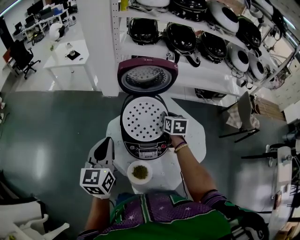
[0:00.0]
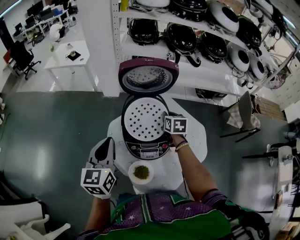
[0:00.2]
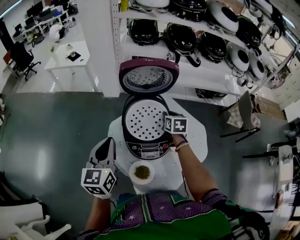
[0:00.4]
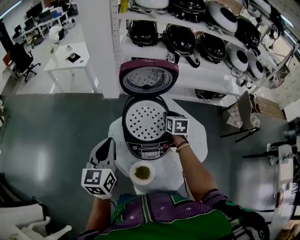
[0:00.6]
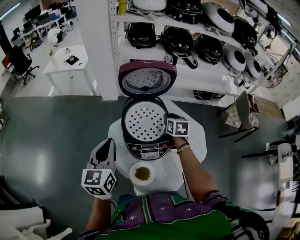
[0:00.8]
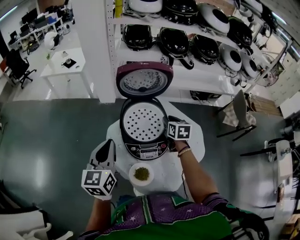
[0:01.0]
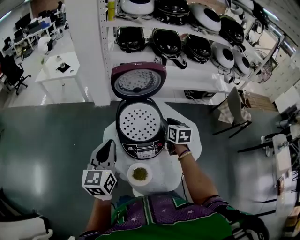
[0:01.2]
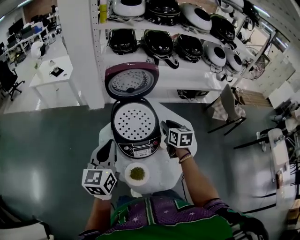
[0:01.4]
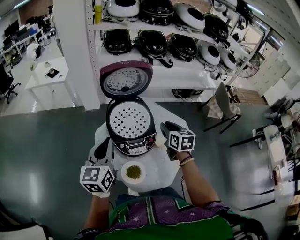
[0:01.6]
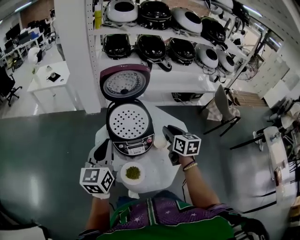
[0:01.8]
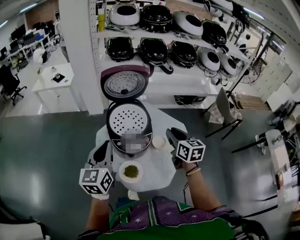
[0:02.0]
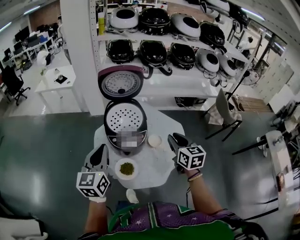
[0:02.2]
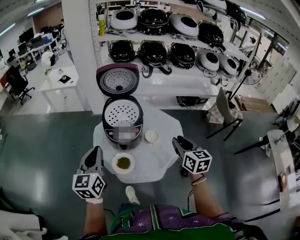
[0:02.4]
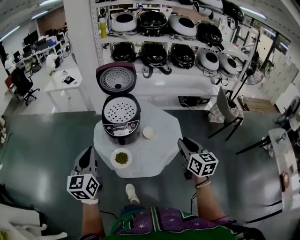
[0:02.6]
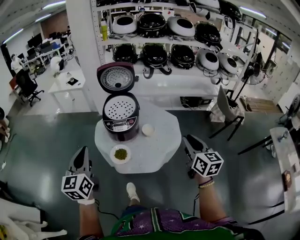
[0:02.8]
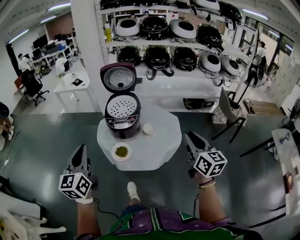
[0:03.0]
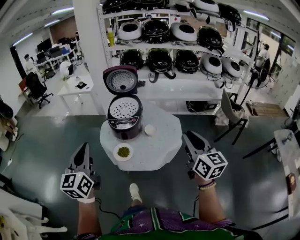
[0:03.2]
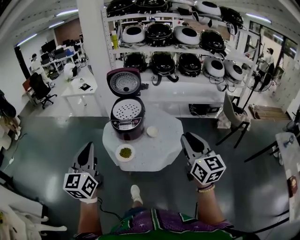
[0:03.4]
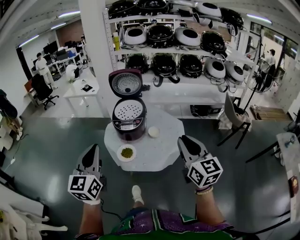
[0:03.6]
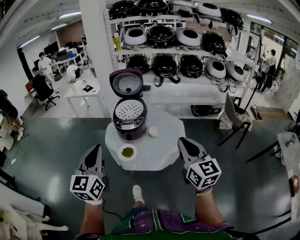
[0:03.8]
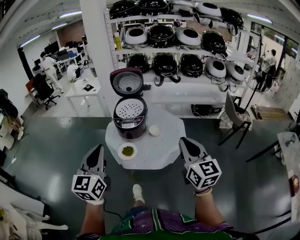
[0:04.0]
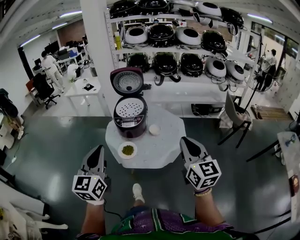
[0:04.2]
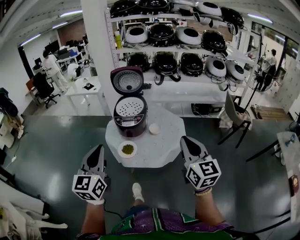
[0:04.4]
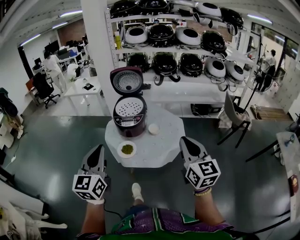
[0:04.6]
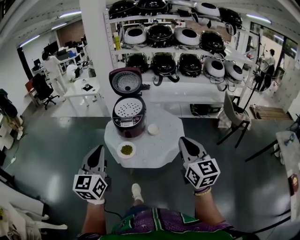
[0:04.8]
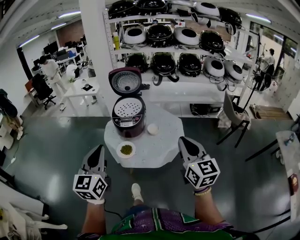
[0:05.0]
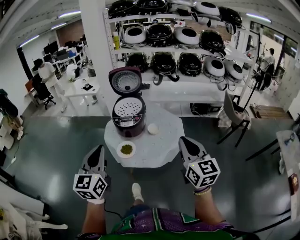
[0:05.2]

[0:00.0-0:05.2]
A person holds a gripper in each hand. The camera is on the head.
0:00.0 to 0:01.8: The right gripper travels backward, upward and to the right by roughly 20 cm. The left gripper shifts by approximately 5 cm.
0:01.8 to 0:03.4: The right gripper goes roughly 40 cm backward, upward and to the right, and changes its angle by roughly 30 degrees. The left gripper travels backward by approximately 35 cm, and swivels some 20 degrees.
0:03.4 to 0:05.2: The left gripper moves some 5 cm.

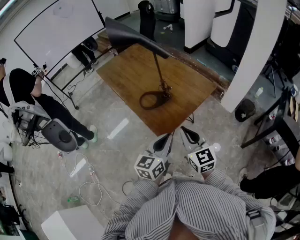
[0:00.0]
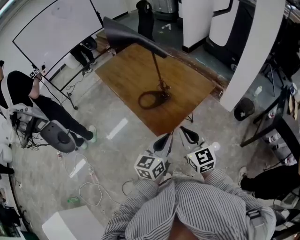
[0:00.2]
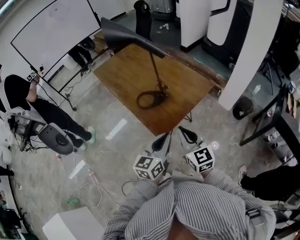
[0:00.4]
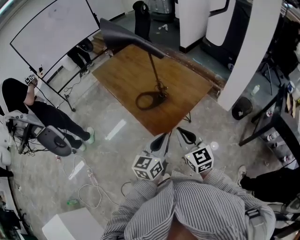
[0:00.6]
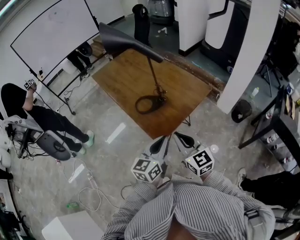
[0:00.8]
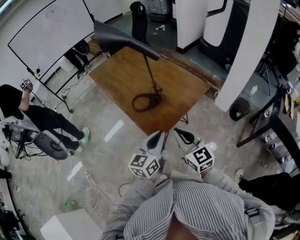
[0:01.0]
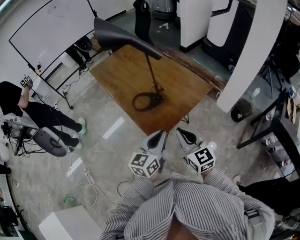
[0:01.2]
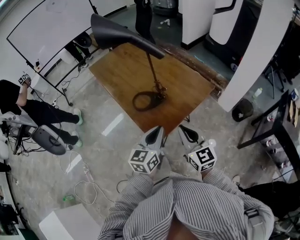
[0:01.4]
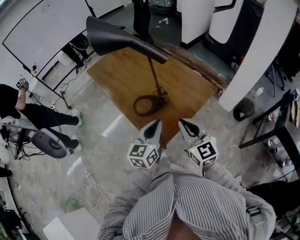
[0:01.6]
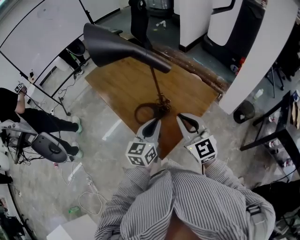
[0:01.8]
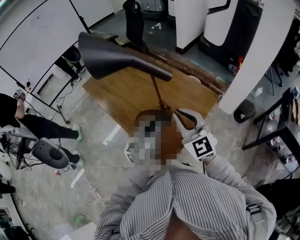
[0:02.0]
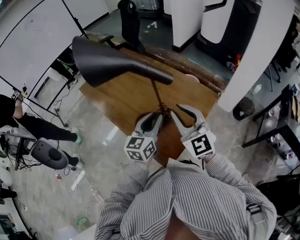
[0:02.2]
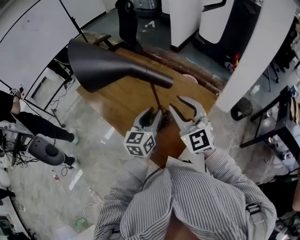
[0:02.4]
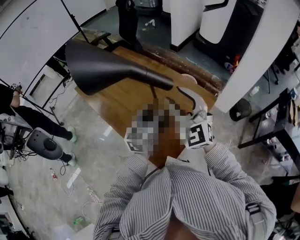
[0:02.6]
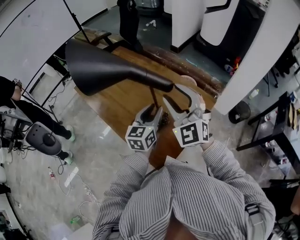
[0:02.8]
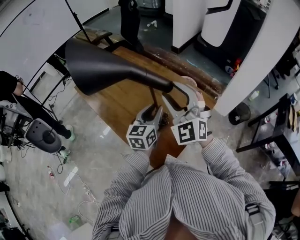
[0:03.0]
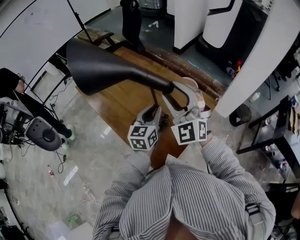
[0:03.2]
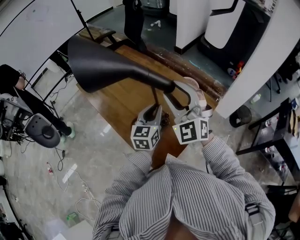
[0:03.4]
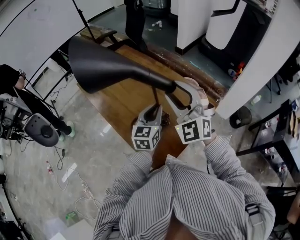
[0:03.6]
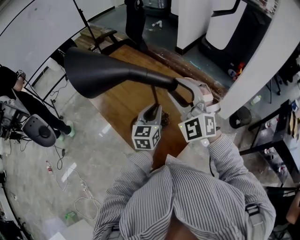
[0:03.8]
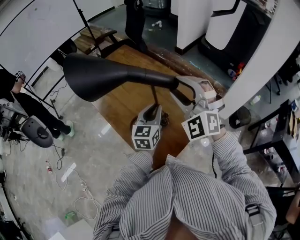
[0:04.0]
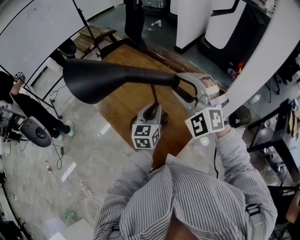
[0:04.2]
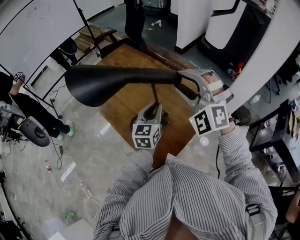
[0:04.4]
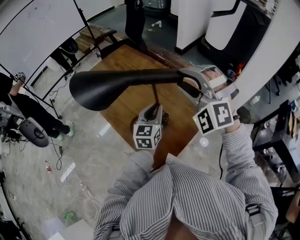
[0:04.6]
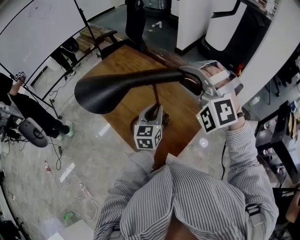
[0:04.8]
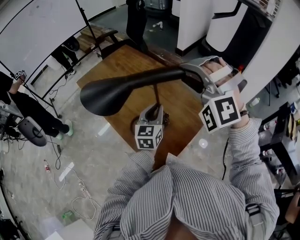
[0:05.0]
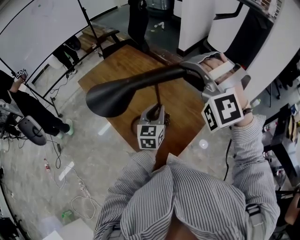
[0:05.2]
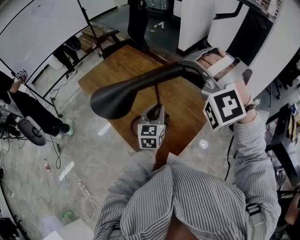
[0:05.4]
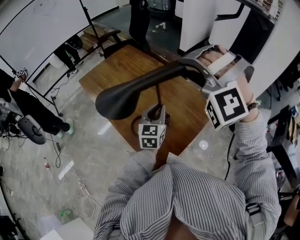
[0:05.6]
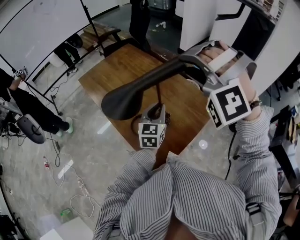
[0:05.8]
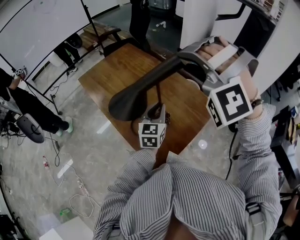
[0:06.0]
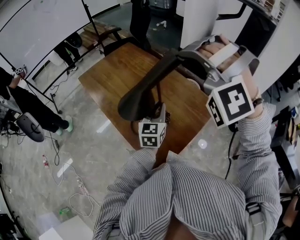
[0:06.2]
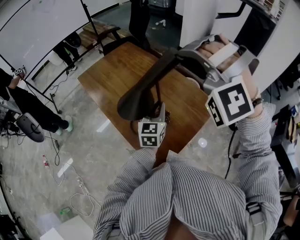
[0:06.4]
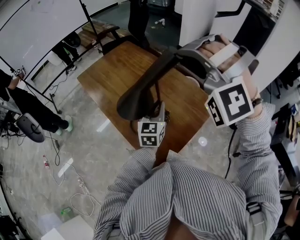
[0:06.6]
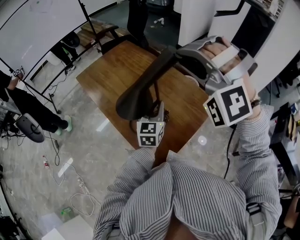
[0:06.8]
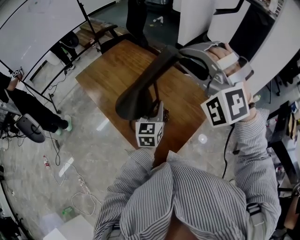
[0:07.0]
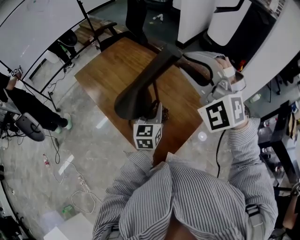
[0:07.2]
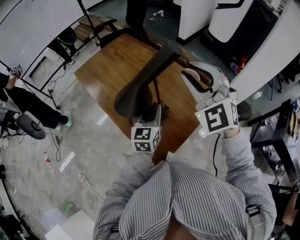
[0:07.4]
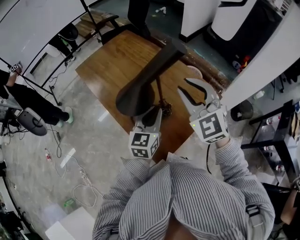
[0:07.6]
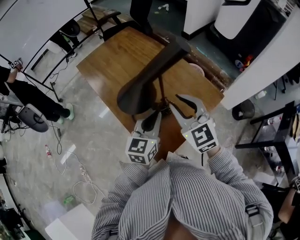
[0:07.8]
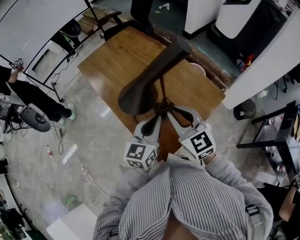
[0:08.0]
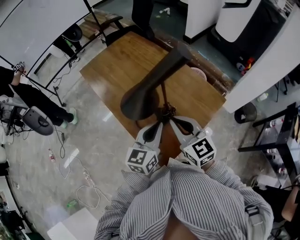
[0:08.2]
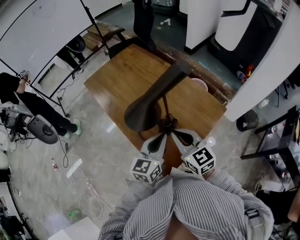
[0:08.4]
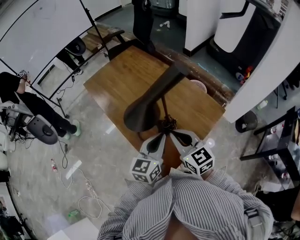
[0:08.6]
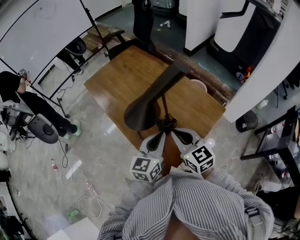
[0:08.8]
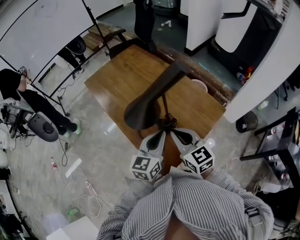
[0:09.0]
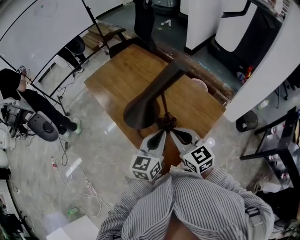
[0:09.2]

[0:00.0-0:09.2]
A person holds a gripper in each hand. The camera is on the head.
0:00.0 to 0:01.6: Both grippers travel together forward, about 10 cm.
0:01.6 to 0:03.0: The right gripper travels forward and upward by roughly 20 cm, twists roughly 40 degrees counterclockwise, seen from behind, and opens up, while the left gripper travels forward by approximately 20 cm, and opens up.
0:03.0 to 0:04.6: The right gripper moves roughly 5 cm, and turns by some 40 degrees.
0:04.6 to 0:06.2: The right gripper is displaced upward by about 5 cm, and changes its angle by roughly 30 degrees.
0:06.2 to 0:07.6: The left gripper shifts by about 5 cm. Meanwhile the right gripper shifts some 15 cm downward, and rolls clockwise, seen from behind, by about 70 degrees.
0:07.6 to 0:09.2: The right gripper travels downward, backward and to the left by some 15 cm, changes its angle by roughly 40 degrees, and closes its fingers.

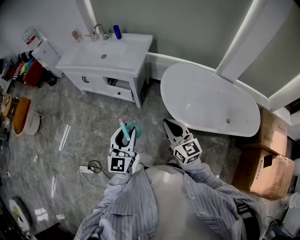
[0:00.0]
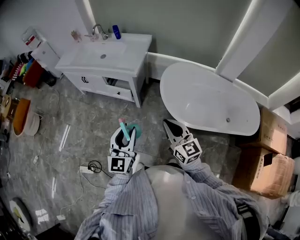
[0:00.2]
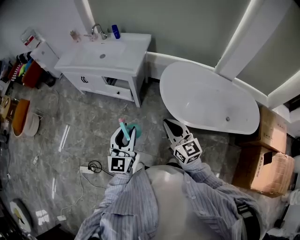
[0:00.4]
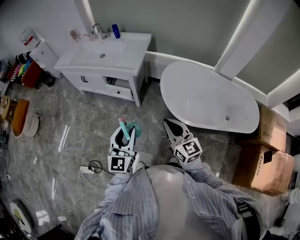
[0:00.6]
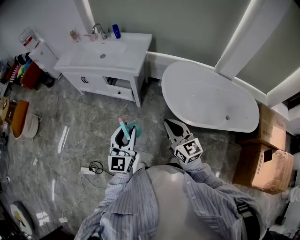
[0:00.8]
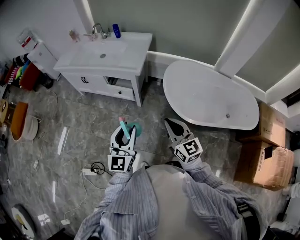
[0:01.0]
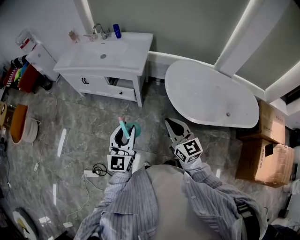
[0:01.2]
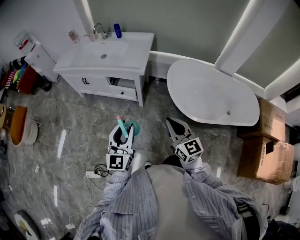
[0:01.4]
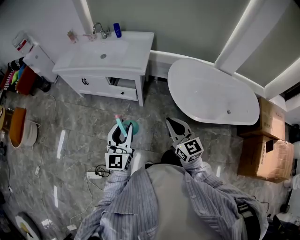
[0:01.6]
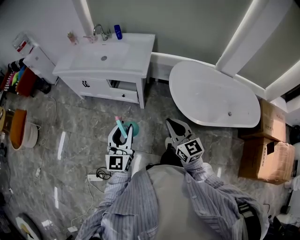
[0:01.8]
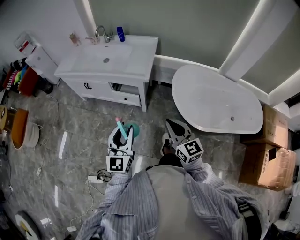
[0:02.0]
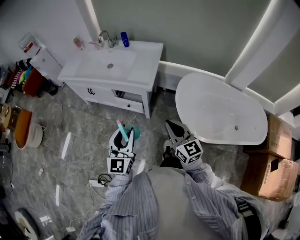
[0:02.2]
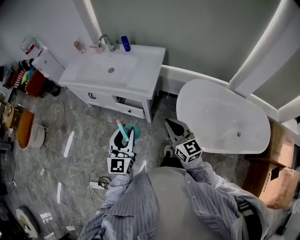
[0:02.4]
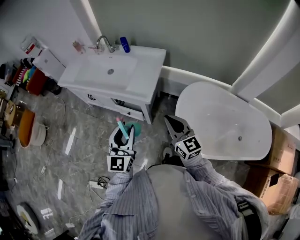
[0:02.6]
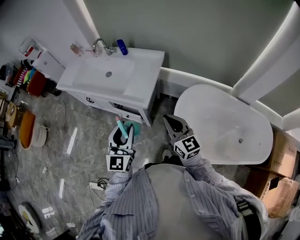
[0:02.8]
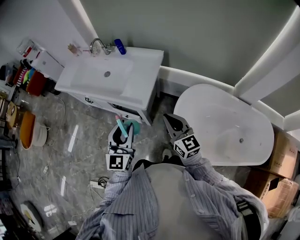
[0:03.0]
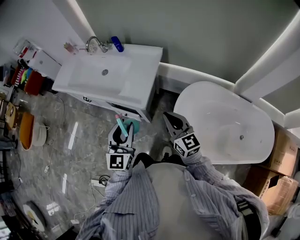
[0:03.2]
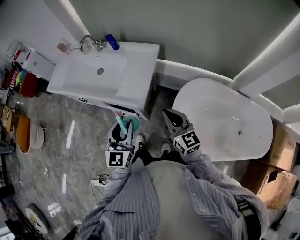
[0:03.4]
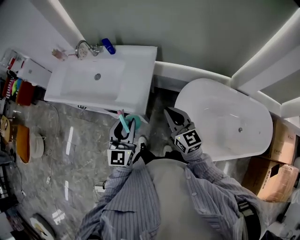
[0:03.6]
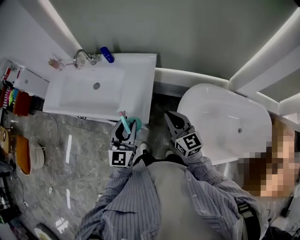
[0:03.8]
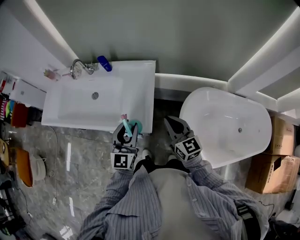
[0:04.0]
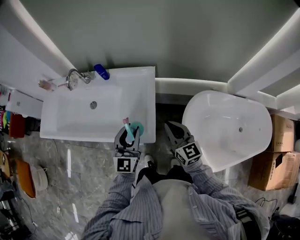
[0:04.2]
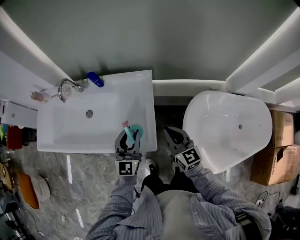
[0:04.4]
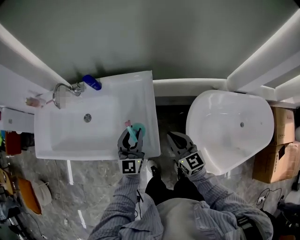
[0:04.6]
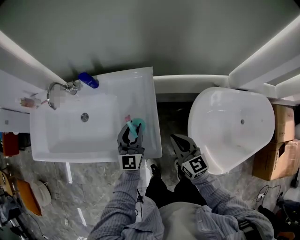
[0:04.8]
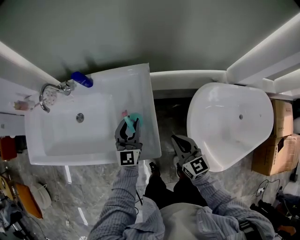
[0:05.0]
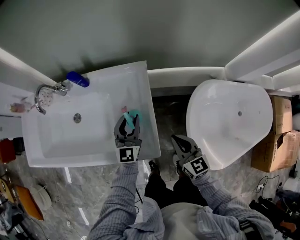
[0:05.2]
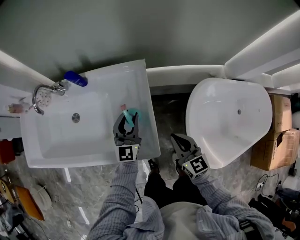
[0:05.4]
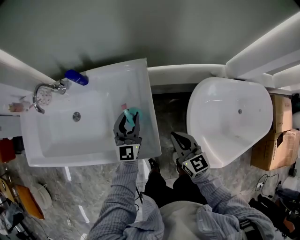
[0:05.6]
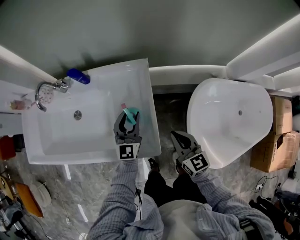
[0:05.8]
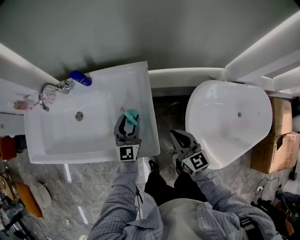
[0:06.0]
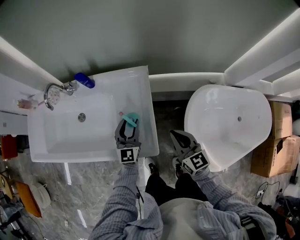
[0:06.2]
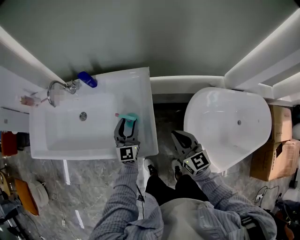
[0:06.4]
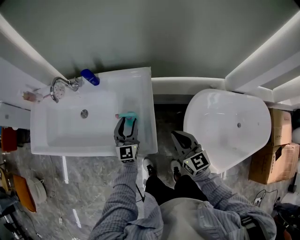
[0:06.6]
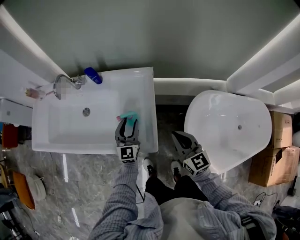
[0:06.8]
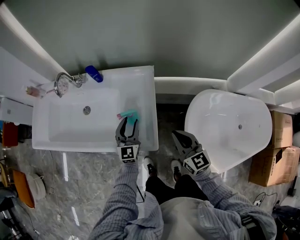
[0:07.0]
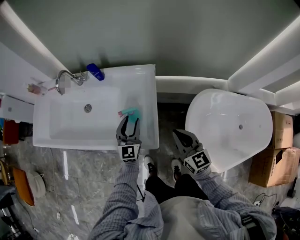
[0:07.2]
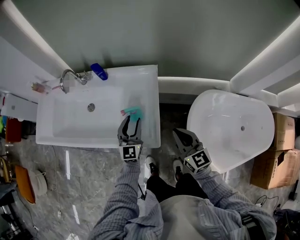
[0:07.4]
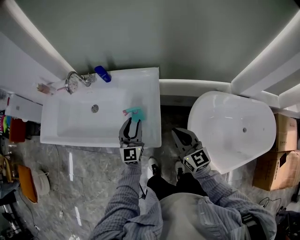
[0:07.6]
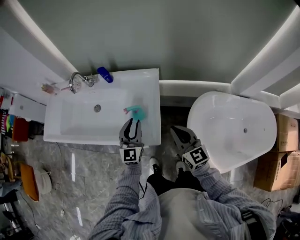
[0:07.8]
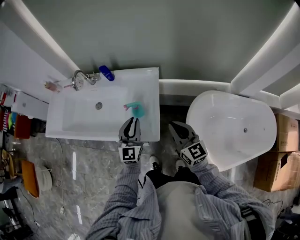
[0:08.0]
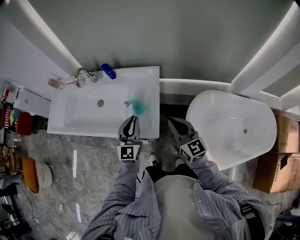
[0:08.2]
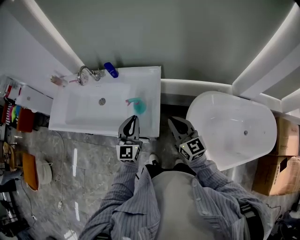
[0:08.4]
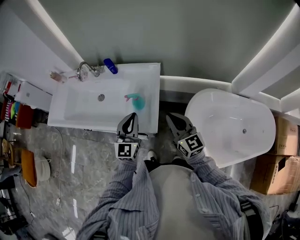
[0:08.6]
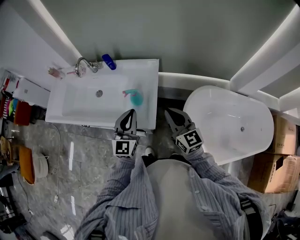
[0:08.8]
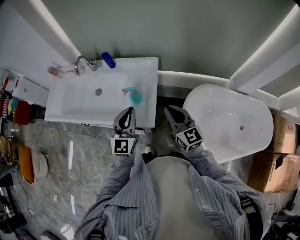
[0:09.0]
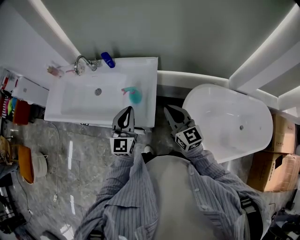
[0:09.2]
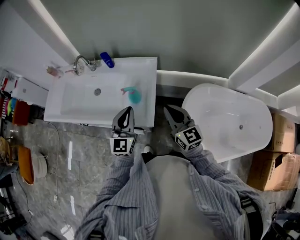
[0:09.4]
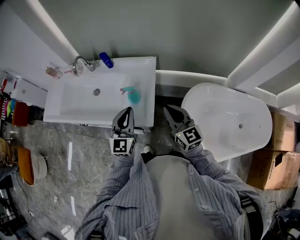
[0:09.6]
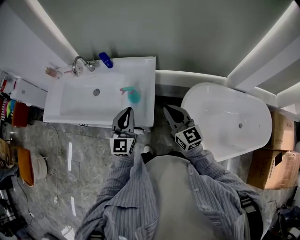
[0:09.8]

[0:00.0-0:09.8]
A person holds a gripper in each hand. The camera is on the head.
0:00.0 to 0:01.4: Both grippers move to the left, roughly 10 cm.
0:01.4 to 0:02.8: The grippers both shift forward by approximately 30 cm.
0:02.8 to 0:04.2: Both grippers travel together forward, some 25 cm.
0:04.2 to 0:05.6: The left gripper moves forward and downward, about 20 cm; the right gripper heads downward, covering roughly 15 cm.
0:05.6 to 0:07.0: The left gripper heads backward, covering roughly 5 cm, while the right gripper moves upward, some 5 cm.
0:07.0 to 0:08.4: The right gripper moves upward, some 10 cm; the left gripper moves upward and backward, some 20 cm, and closes its fingers.
0:08.4 to 0:09.8: There are only small adjustments of the grippers.
